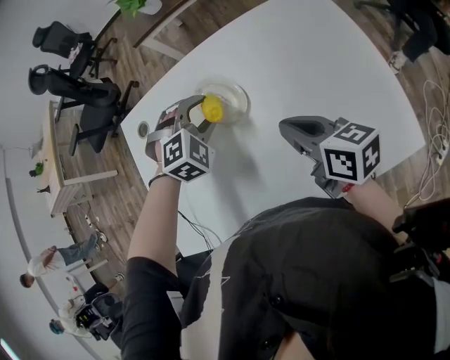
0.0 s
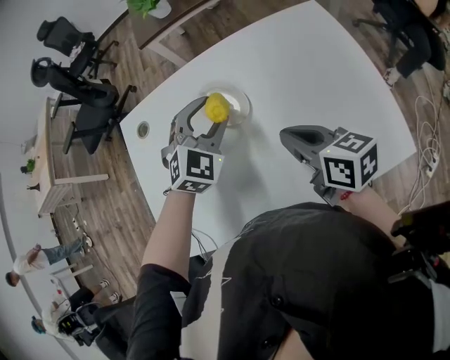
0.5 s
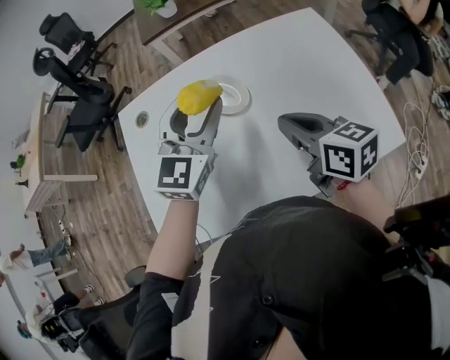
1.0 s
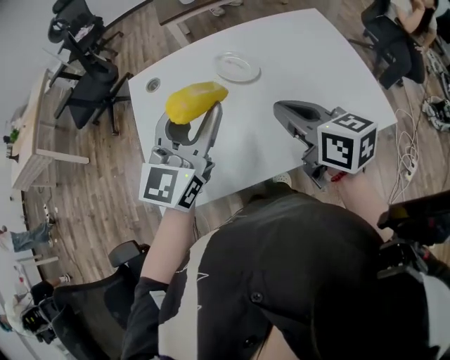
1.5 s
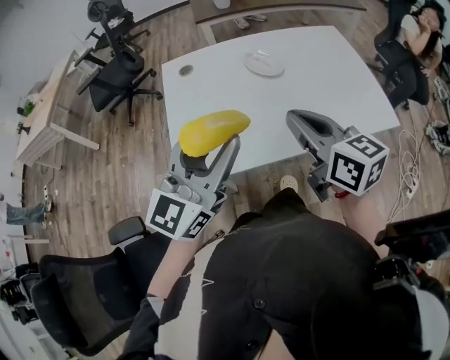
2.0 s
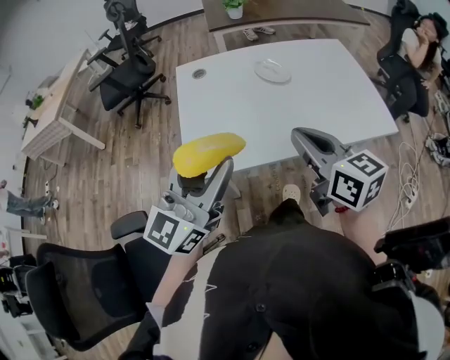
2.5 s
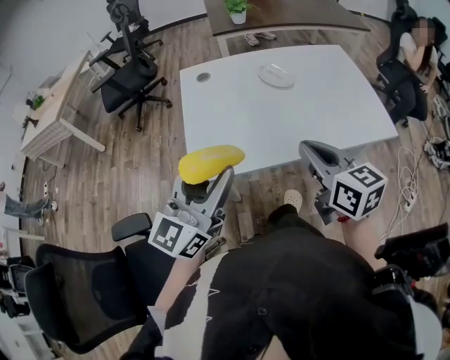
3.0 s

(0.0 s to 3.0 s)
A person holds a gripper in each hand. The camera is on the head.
0.0 s - 1.5 s: The right gripper moves backward, to the left and upward, about 20 cm. The left gripper moves backward, upward and to the left, about 30 cm, and tilts its fingers approximately 60 degrees upward.
1.5 s - 3.0 s: Both grippers travel together backward and to the left, roughly 25 cm.

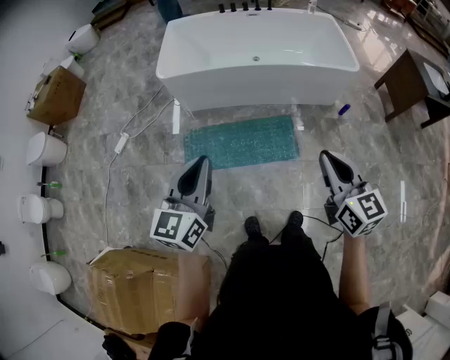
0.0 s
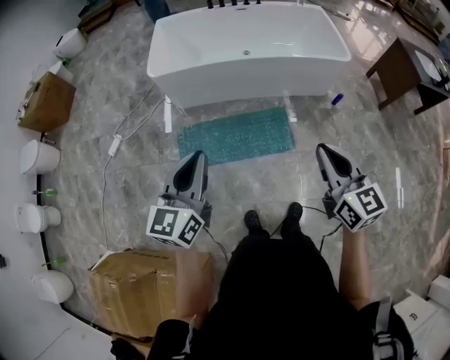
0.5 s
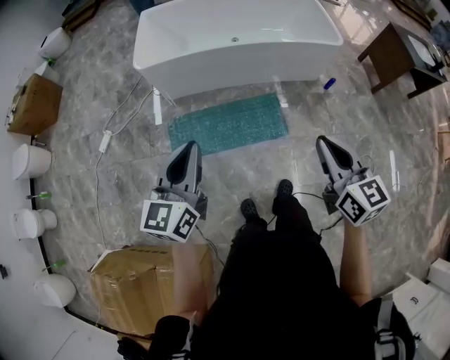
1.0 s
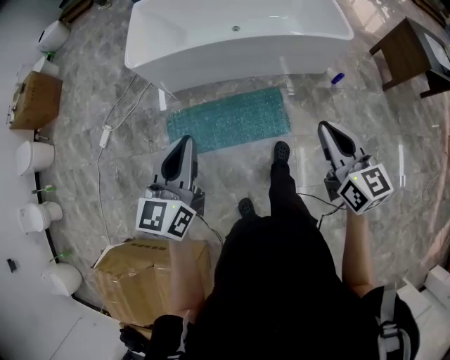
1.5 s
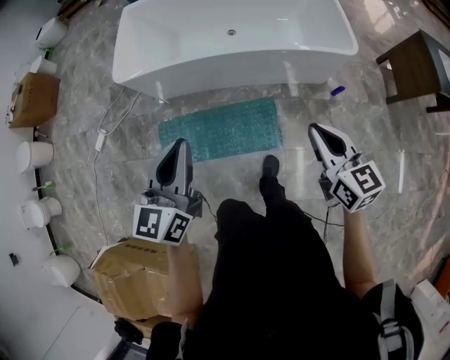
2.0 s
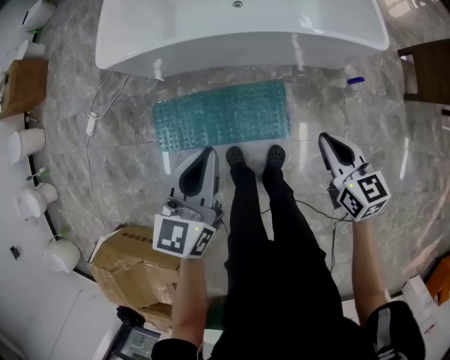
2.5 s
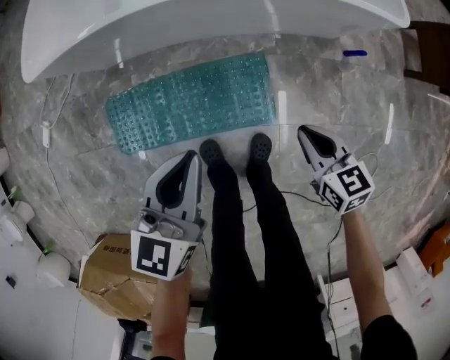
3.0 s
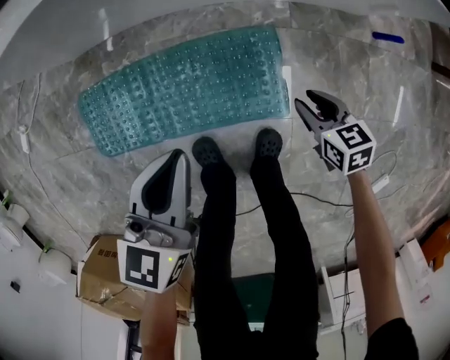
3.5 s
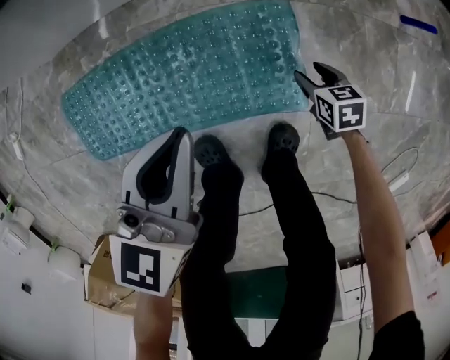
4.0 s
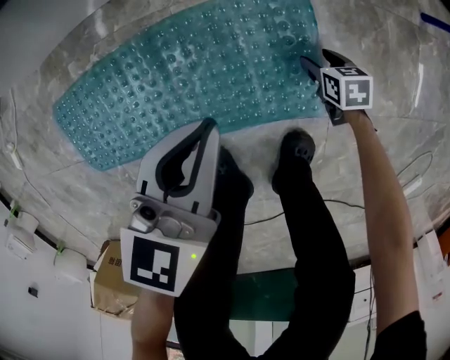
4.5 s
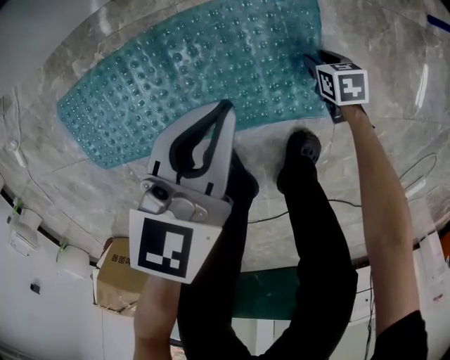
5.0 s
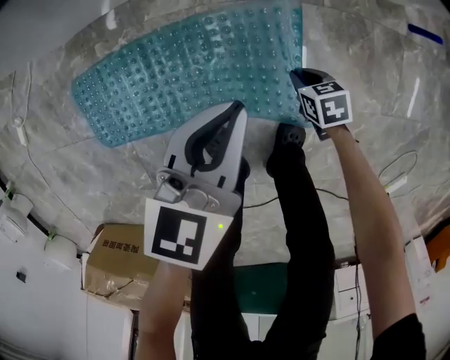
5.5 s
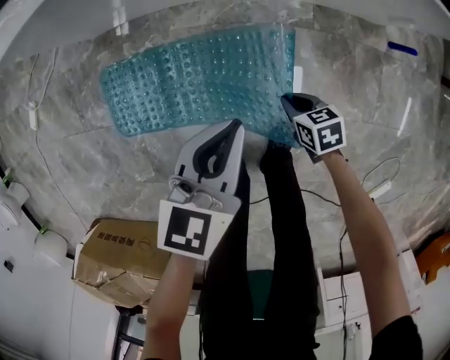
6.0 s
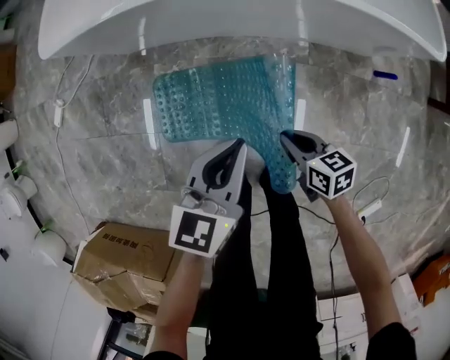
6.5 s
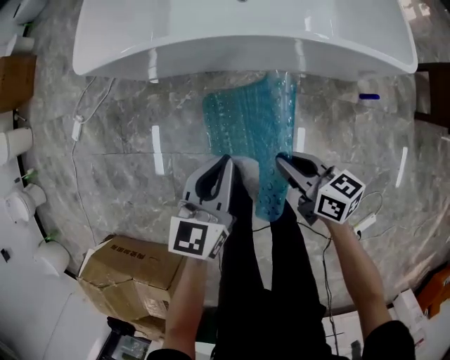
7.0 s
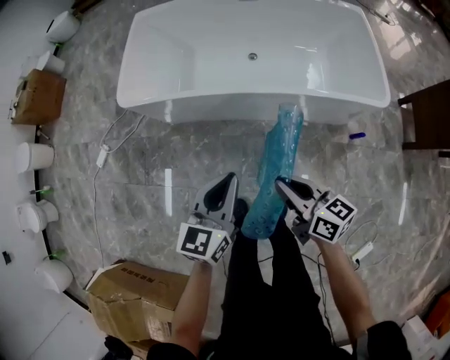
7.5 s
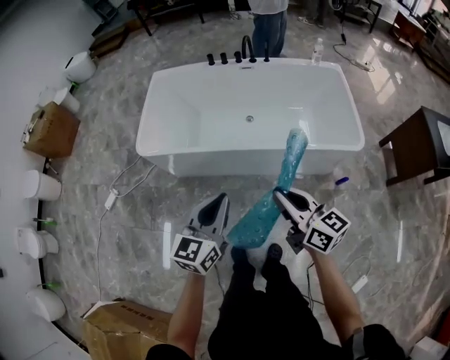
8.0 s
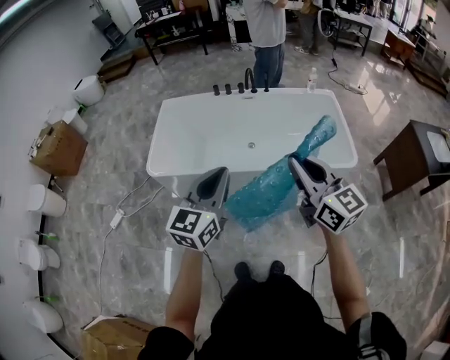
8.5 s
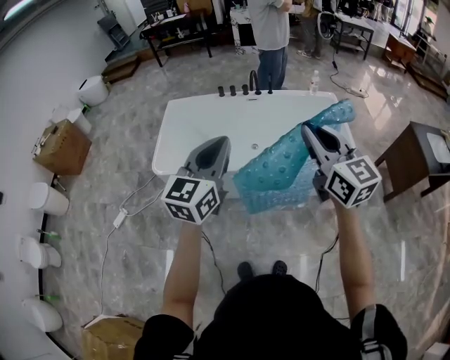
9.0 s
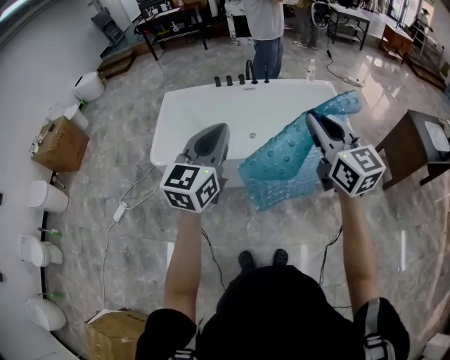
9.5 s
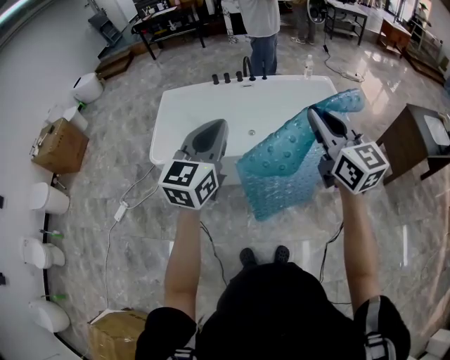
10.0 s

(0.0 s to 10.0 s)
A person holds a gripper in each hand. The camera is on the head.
0.0 s - 2.0 s: The grippers both shift forward and to the right by about 30 cm.
2.0 s - 4.0 s: Both grippers travel together downward, about 80 cm. The right gripper tips its fingers downward by about 40 degrees, and opens. Meanwhile the left gripper rotates some 30 degrees.
4.0 s - 6.0 s: The left gripper goes approximately 10 cm upward. Meanwhile the right gripper travels upward and to the left by approximately 20 cm, and closes up.
6.0 s - 8.0 s: Both grippers travel together upward, approximately 70 cm. The right gripper tilts its fingers some 50 degrees upward. Meanwhile the left gripper swivels approximately 20 degrees.
8.0 s - 10.0 s: Both grippers travel together upward, about 25 cm. The right gripper rotates roughly 30 degrees.

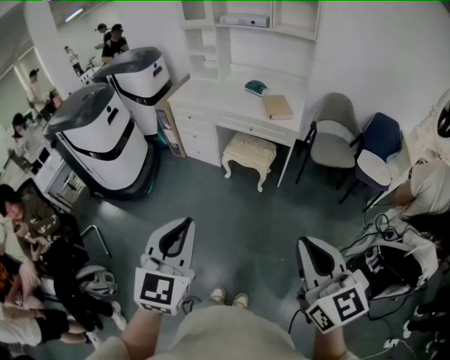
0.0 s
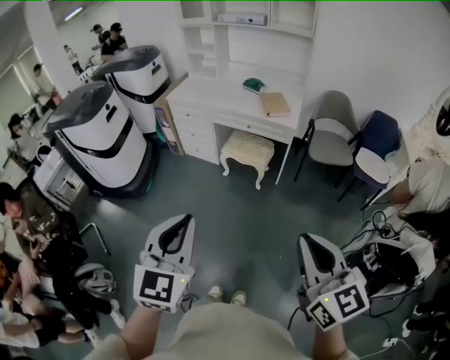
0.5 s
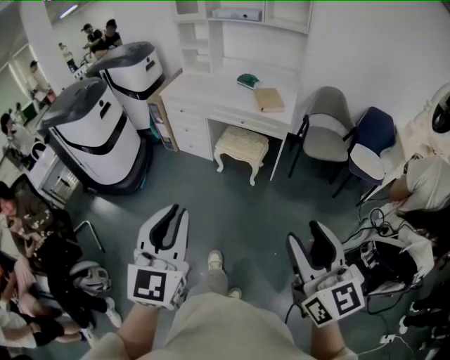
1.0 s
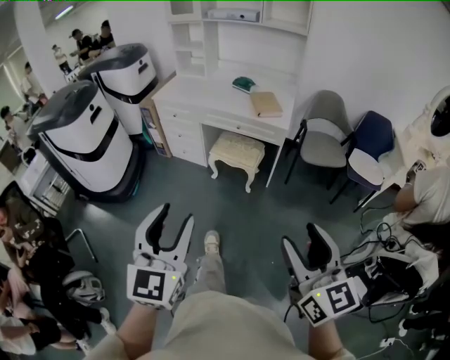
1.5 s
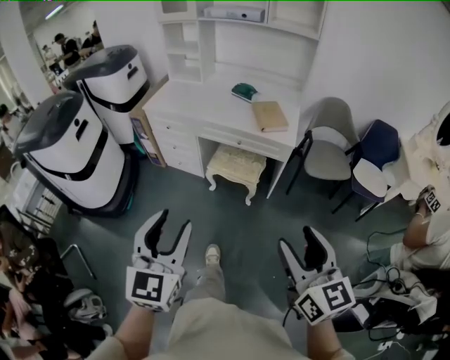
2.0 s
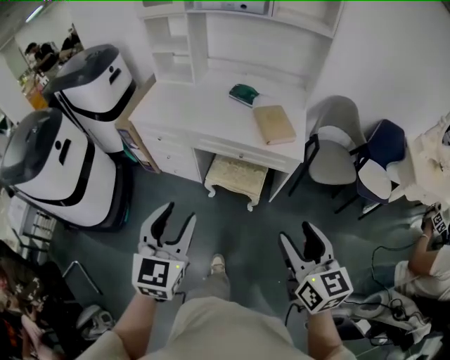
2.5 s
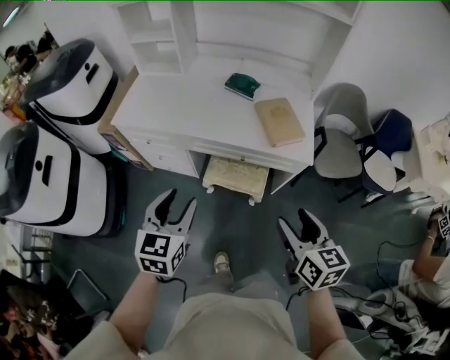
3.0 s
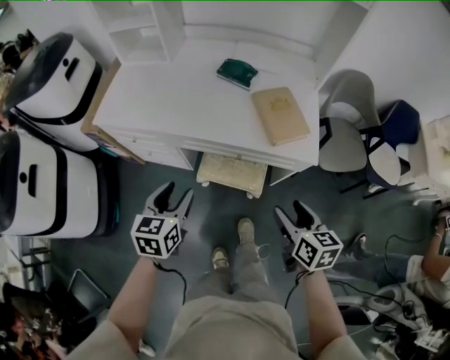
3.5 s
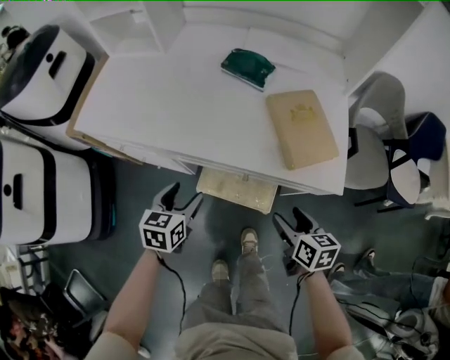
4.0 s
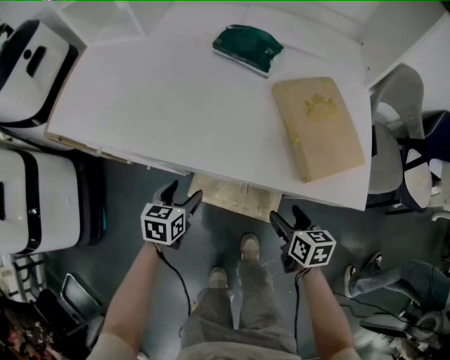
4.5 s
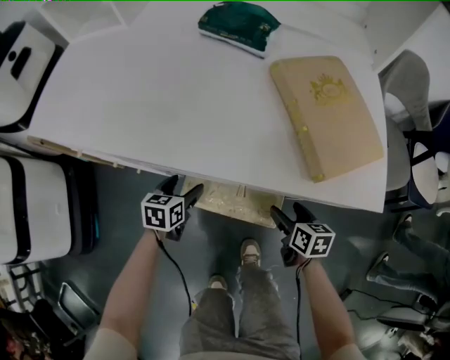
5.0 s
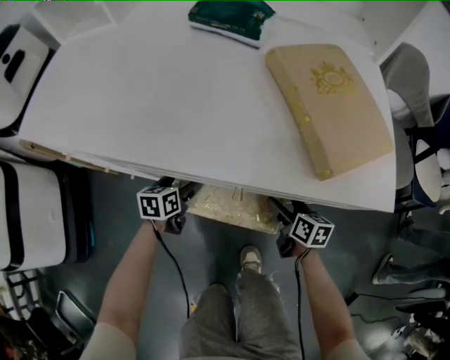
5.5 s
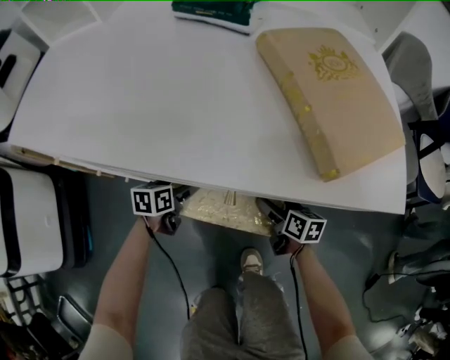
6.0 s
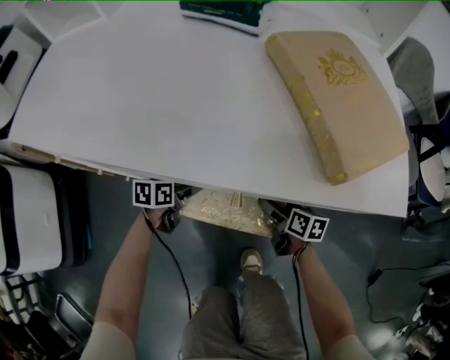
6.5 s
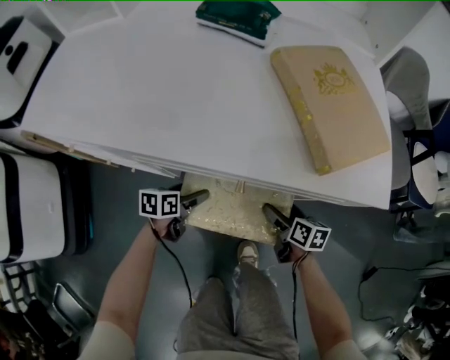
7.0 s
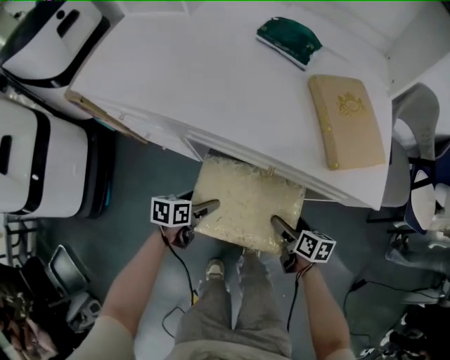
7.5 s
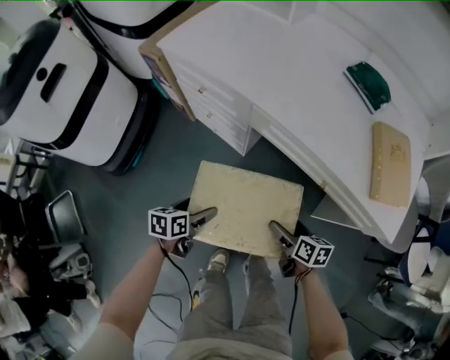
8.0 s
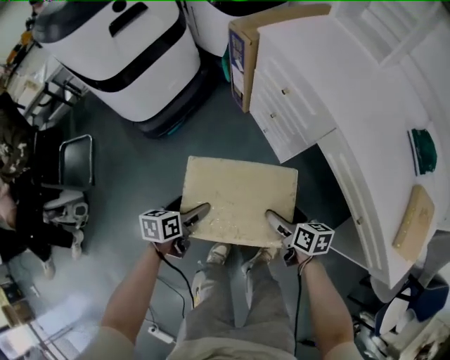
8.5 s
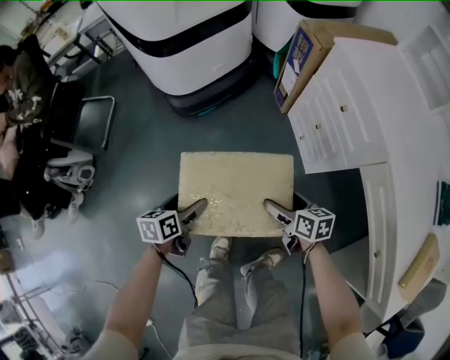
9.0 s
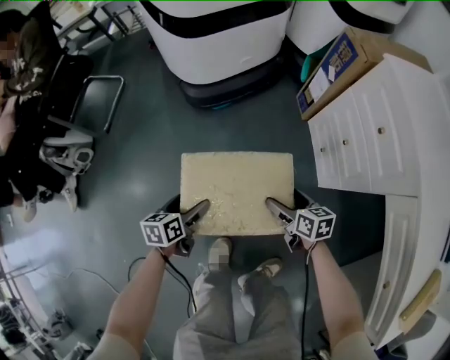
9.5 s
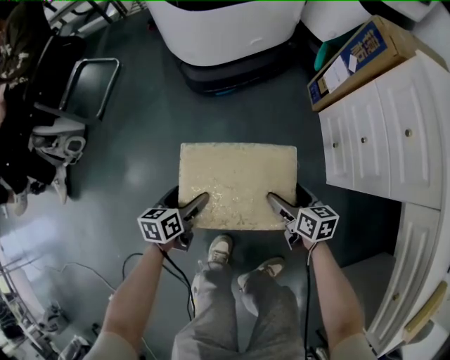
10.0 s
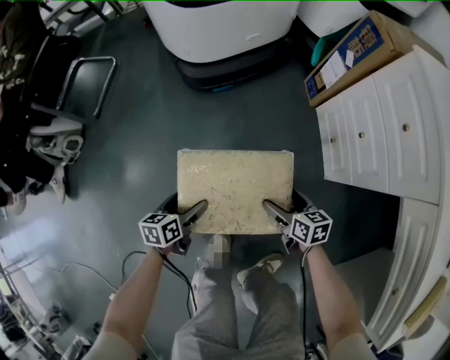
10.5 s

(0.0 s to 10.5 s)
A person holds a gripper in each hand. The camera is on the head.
0.0 s - 2.0 s: The grippers both shift forward by approximately 25 cm. The left gripper opens its fingers, while the right gripper opens.
2.0 s - 4.0 s: The pair of grippers is taken forward, approximately 60 cm. The grippers both shift downward by some 40 cm. The left gripper angles its fingers downward, by approximately 30 degrees, while the right gripper angles its fingers downward, by approximately 30 degrees.
4.0 s - 6.5 s: The grippers both shift downward by approximately 35 cm. The right gripper opens, while the left gripper turns by roughly 30 degrees, and opens.
6.5 s - 8.5 s: The pair of grippers is taken about 50 cm. The right gripper rotates approximately 60 degrees. The left gripper turns by about 60 degrees.
8.5 s - 10.5 s: The two grippers go about 20 cm downward. The left gripper changes its angle by roughly 30 degrees; the right gripper rotates about 30 degrees.

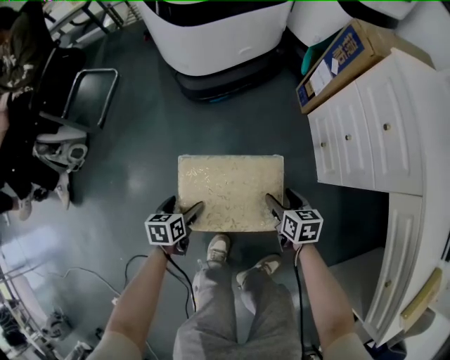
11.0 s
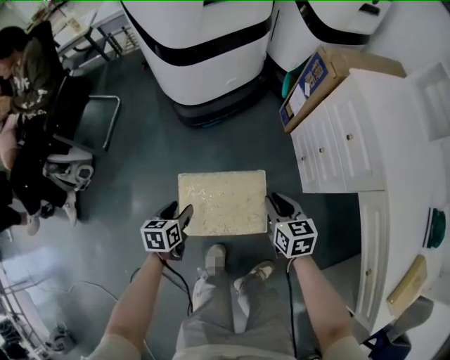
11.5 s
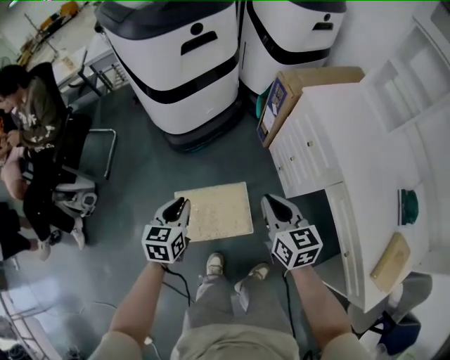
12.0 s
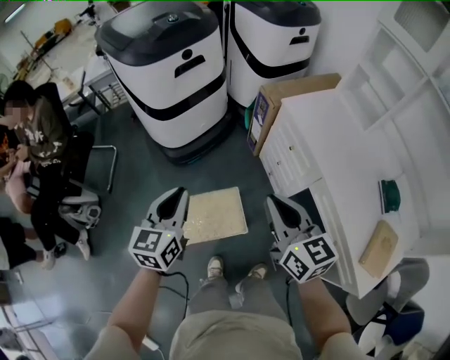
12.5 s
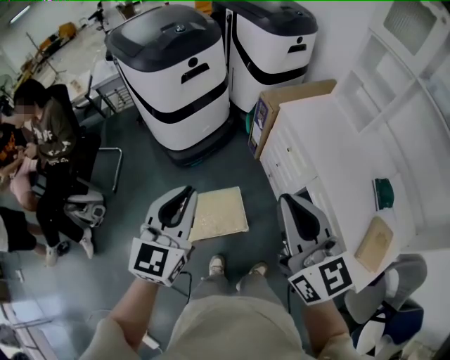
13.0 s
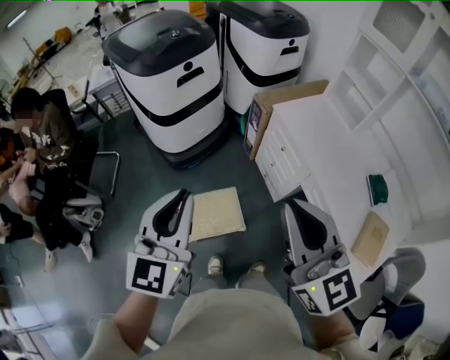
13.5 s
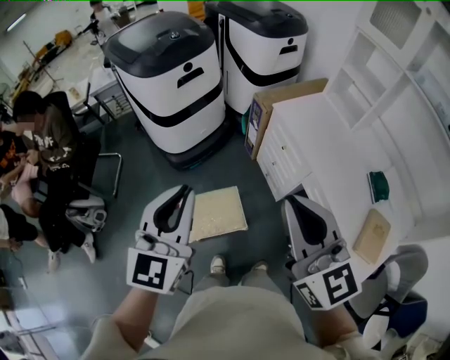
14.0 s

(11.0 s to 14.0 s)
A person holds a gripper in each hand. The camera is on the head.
11.0 s - 12.5 s: The two grippers go about 60 cm upward. The left gripper tilts its fingers approximately 40 degrees upward, and closes, while the right gripper tips its fingers upward by roughly 40 degrees, and closes its fingers.
12.5 s - 14.0 s: The two grippers go some 20 cm upward and backward. The right gripper changes its angle by some 20 degrees. The left gripper turns by about 20 degrees.
